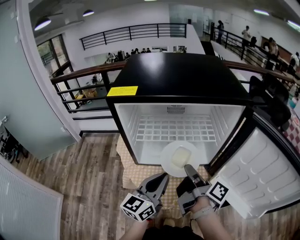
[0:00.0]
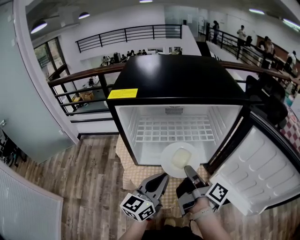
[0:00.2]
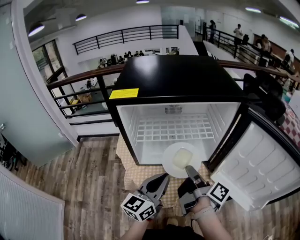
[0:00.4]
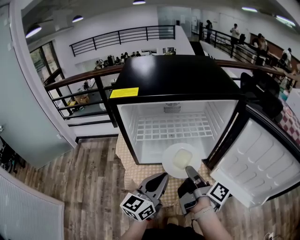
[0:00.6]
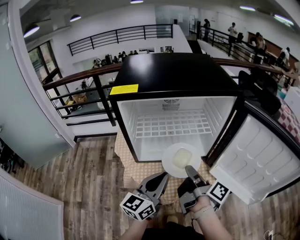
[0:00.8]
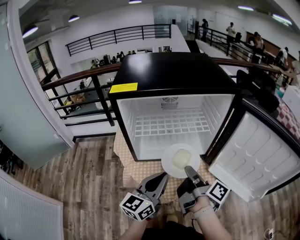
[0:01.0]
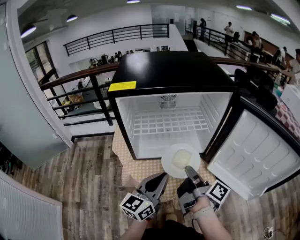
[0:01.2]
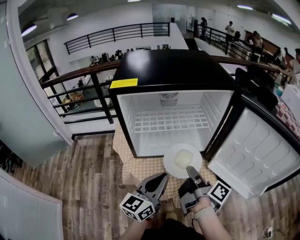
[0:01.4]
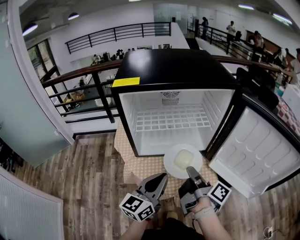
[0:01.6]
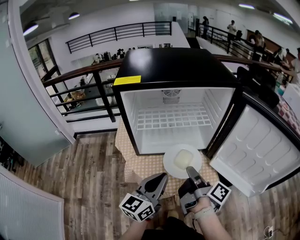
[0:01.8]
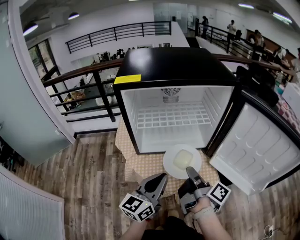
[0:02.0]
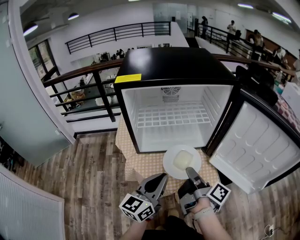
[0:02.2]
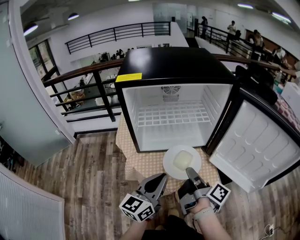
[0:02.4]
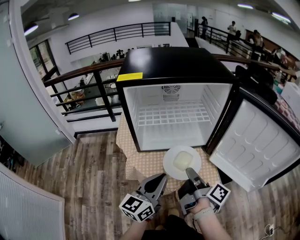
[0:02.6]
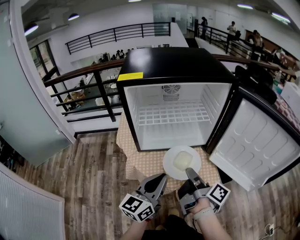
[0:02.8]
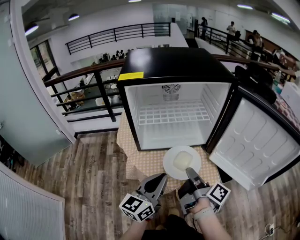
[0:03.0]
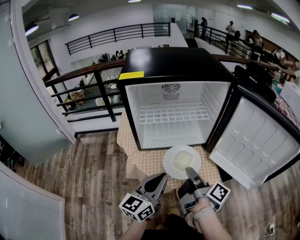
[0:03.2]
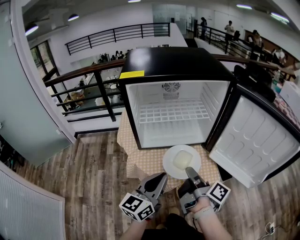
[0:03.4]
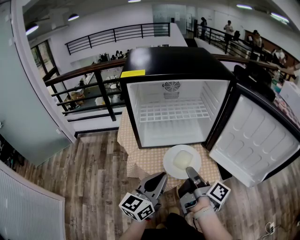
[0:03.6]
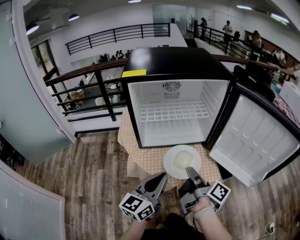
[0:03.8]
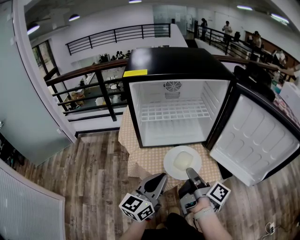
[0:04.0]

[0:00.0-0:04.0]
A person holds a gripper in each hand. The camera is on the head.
0:00.0 to 0:01.4: Both grippers travel together backward, about 5 cm.
0:01.4 to 0:02.6: The grippers stay close to where they were, moving slightly.
0:02.6 to 0:04.0: There are only small adjustments of the grippers.

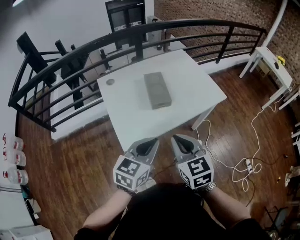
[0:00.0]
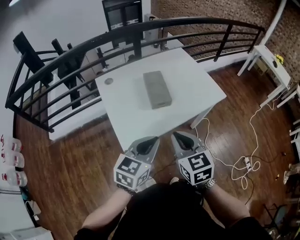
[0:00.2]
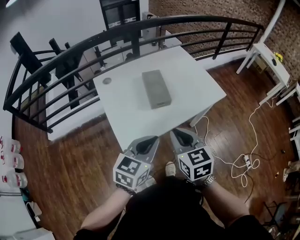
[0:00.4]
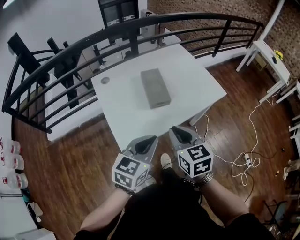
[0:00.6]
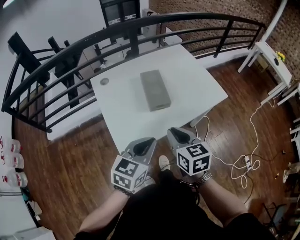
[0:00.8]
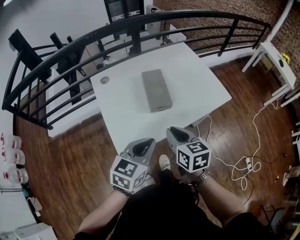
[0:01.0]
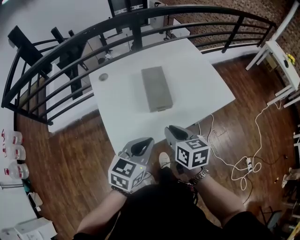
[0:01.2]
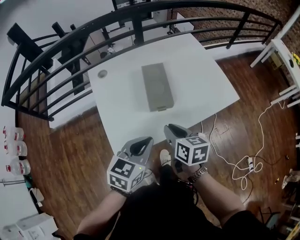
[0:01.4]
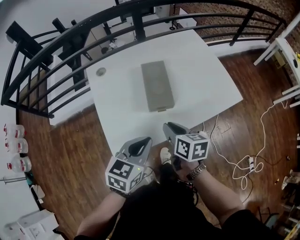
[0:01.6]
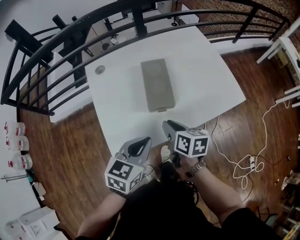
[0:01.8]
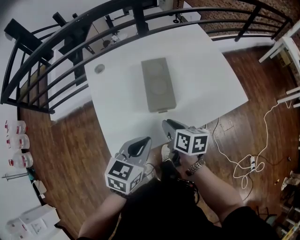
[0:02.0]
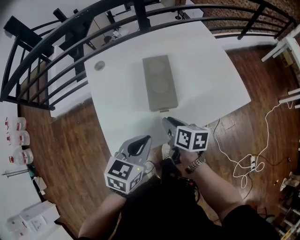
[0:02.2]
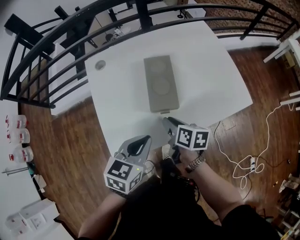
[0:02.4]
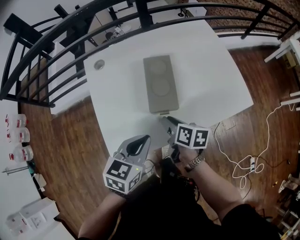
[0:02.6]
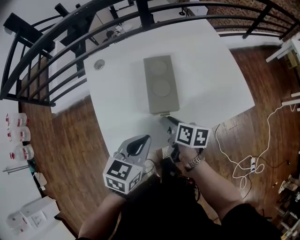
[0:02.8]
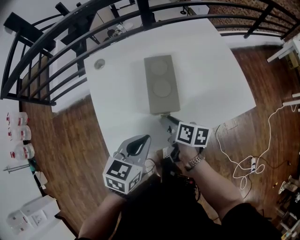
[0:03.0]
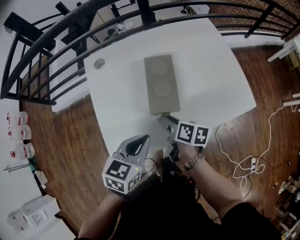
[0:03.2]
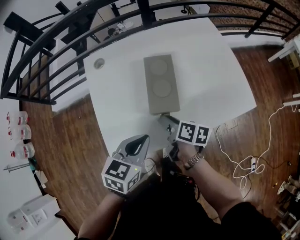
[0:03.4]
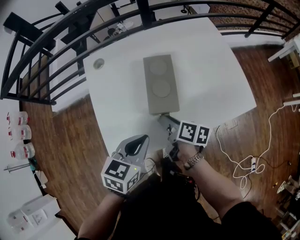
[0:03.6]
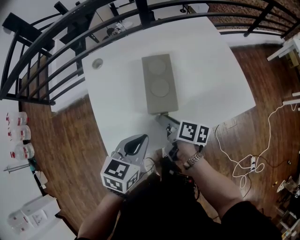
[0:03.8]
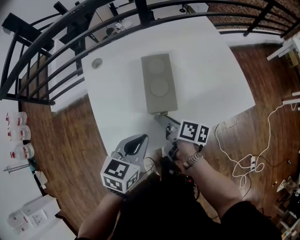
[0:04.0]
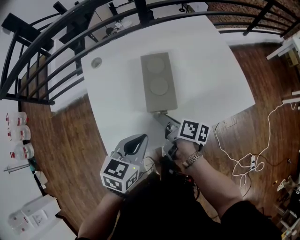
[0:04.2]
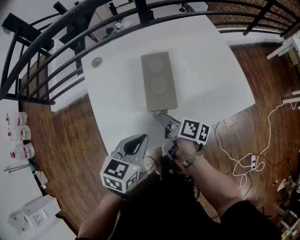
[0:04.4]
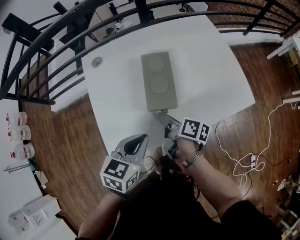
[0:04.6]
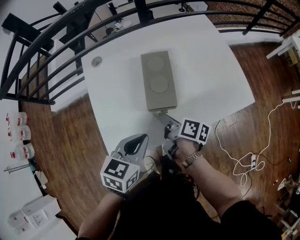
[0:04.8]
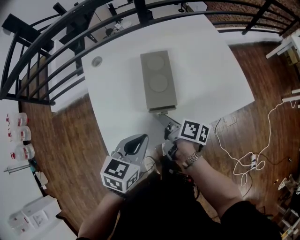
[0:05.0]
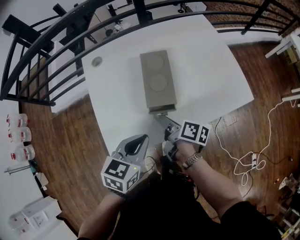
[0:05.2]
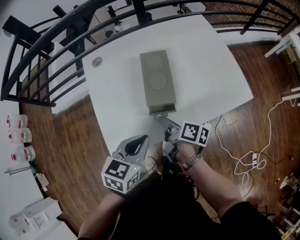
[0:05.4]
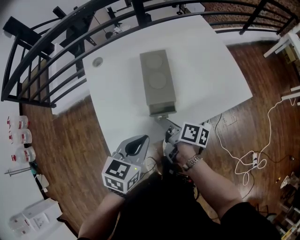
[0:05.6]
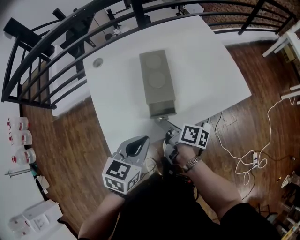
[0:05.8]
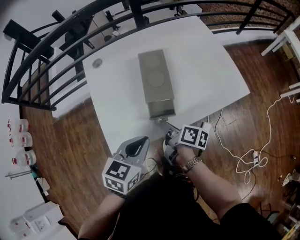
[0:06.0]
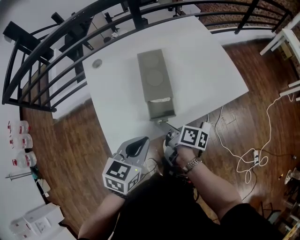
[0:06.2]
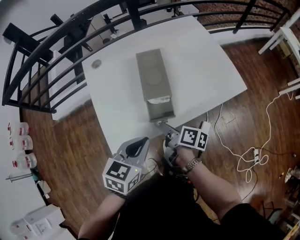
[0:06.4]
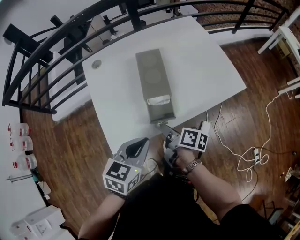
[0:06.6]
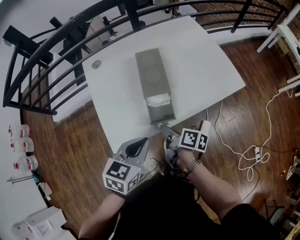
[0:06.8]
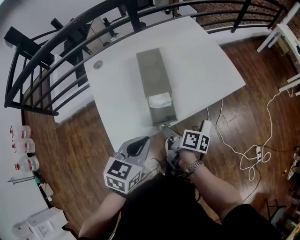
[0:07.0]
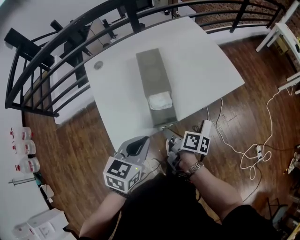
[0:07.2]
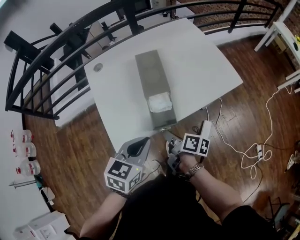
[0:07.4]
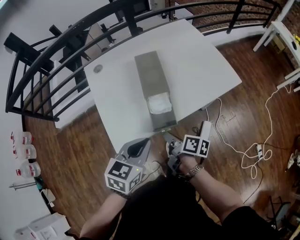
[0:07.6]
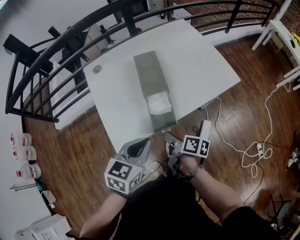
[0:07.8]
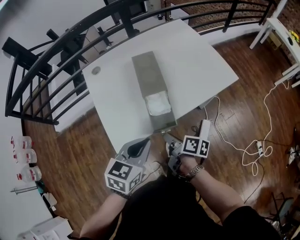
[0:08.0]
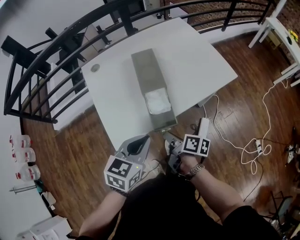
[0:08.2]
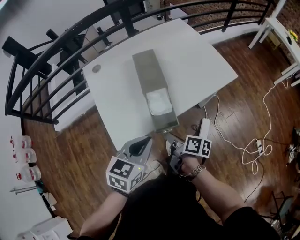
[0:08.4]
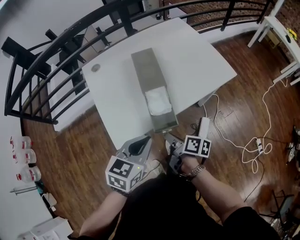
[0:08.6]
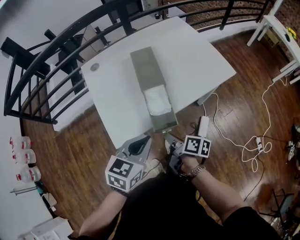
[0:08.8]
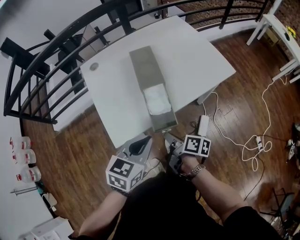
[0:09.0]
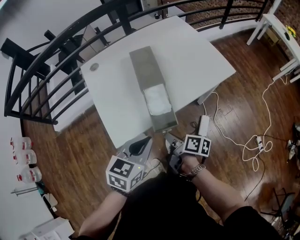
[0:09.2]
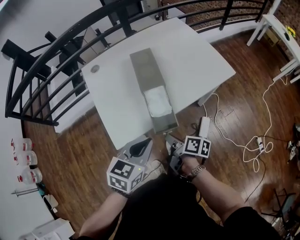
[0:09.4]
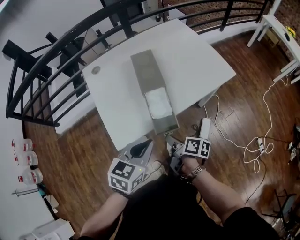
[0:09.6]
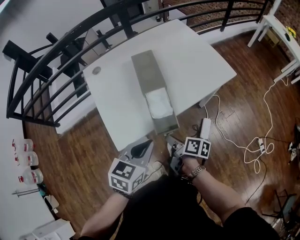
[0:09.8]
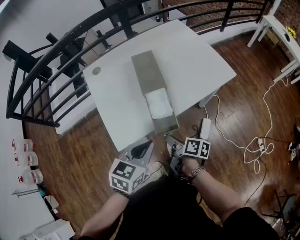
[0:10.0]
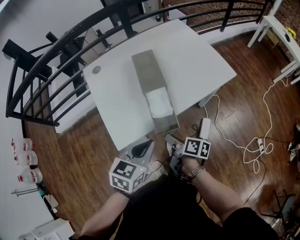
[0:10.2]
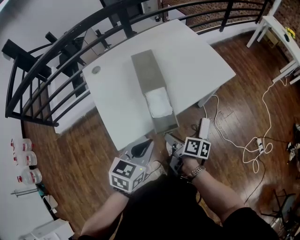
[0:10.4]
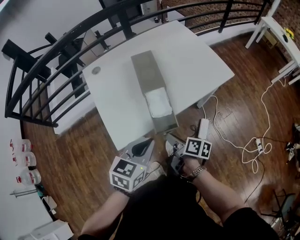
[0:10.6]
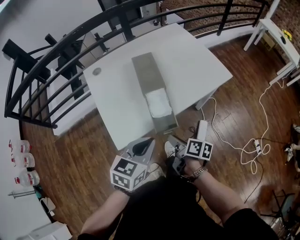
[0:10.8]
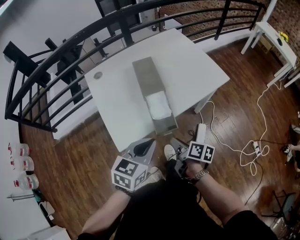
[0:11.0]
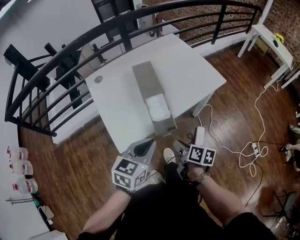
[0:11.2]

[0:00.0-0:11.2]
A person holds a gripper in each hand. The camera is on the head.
0:00.0 to 0:01.6: The right gripper shifts approximately 20 cm forward and downward, and turns by approximately 40 degrees, while the left gripper travels forward and downward by roughly 15 cm.
0:01.6 to 0:03.2: The left gripper goes some 5 cm forward. Meanwhile the right gripper heads downward and forward, covering some 10 cm, and rotates approximately 20 degrees.
0:03.2 to 0:04.8: The grippers move only a little.
0:04.8 to 0:06.4: Both grippers move backward, about 5 cm.
0:06.4 to 0:08.0: The right gripper shifts approximately 10 cm backward.
0:08.0 to 0:09.6: There are only small adjustments of the grippers.
0:09.6 to 0:11.2: The right gripper moves about 5 cm.

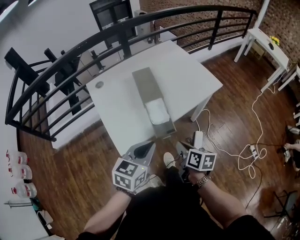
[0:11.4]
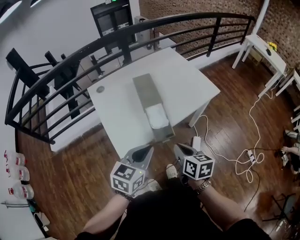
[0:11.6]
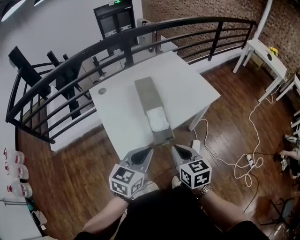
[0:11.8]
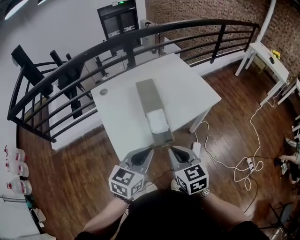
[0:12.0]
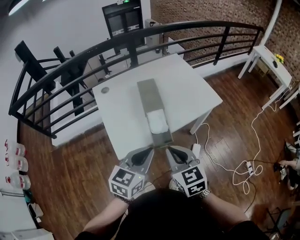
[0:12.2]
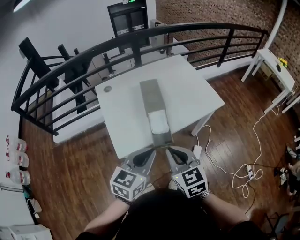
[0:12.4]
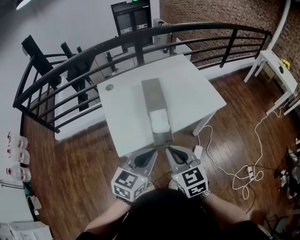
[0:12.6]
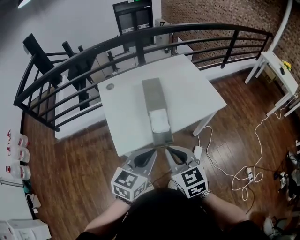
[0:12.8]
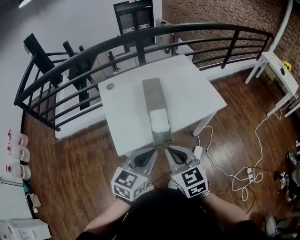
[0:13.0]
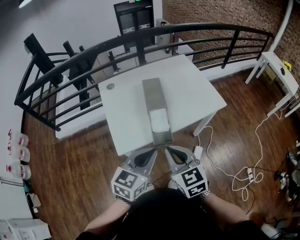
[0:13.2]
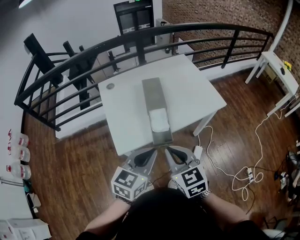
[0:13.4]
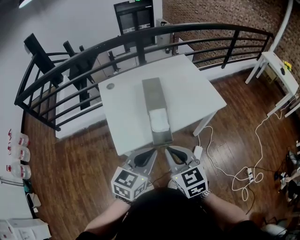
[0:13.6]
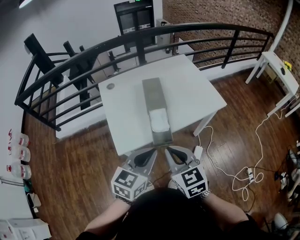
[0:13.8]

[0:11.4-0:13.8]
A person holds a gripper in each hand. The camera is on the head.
0:11.4 to 0:12.6: The left gripper moves upward, roughly 5 cm. The right gripper is displaced upward by about 15 cm, and rotates around the line of its fingers by about 50 degrees, counterclockwise from behind.
0:12.6 to 0:13.8: Neither gripper changes place.

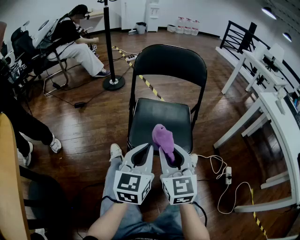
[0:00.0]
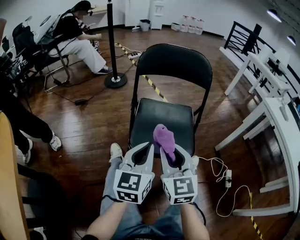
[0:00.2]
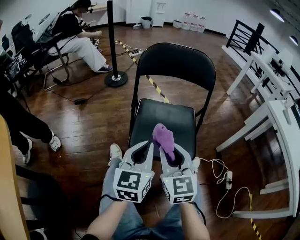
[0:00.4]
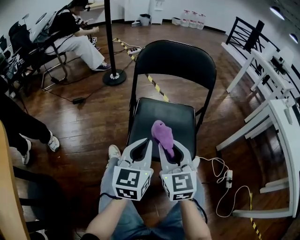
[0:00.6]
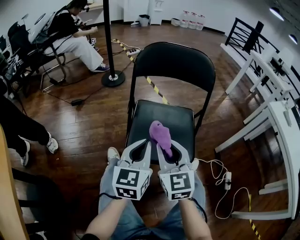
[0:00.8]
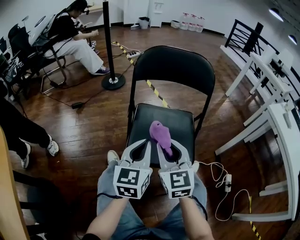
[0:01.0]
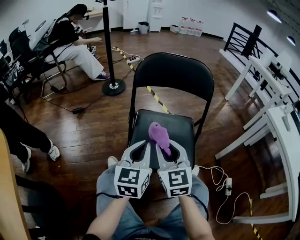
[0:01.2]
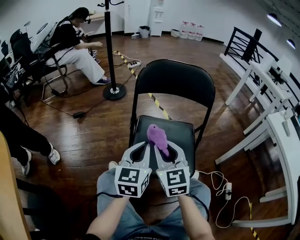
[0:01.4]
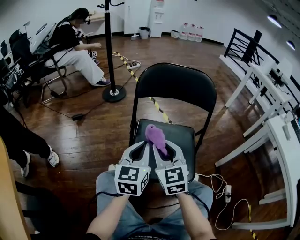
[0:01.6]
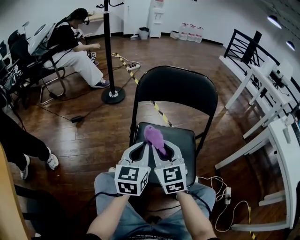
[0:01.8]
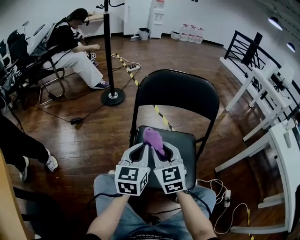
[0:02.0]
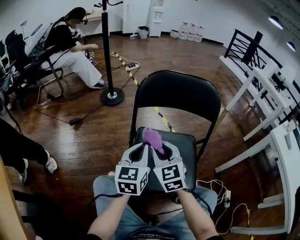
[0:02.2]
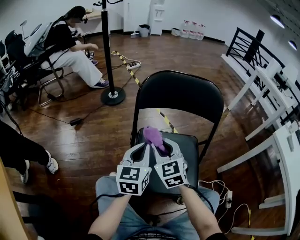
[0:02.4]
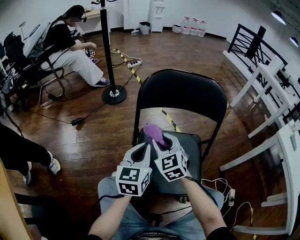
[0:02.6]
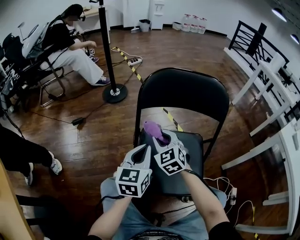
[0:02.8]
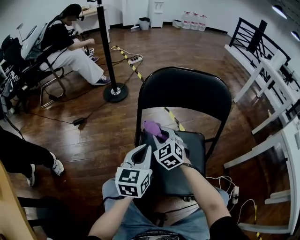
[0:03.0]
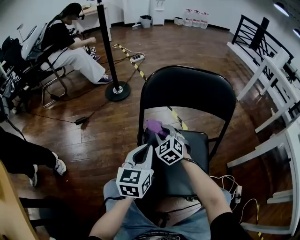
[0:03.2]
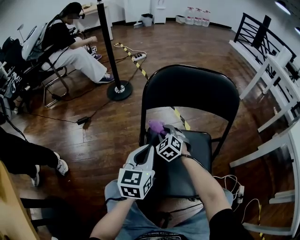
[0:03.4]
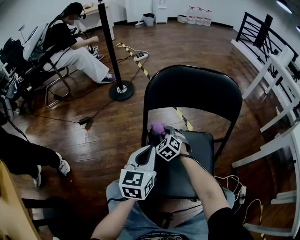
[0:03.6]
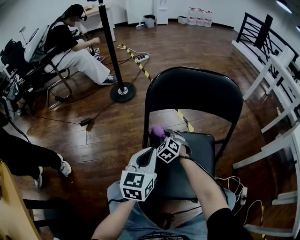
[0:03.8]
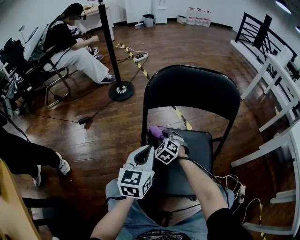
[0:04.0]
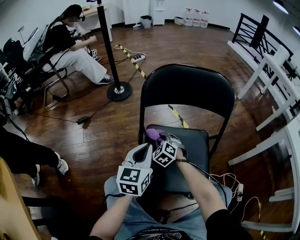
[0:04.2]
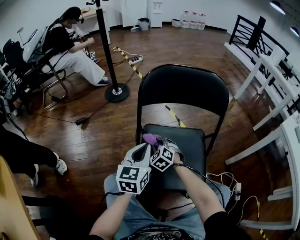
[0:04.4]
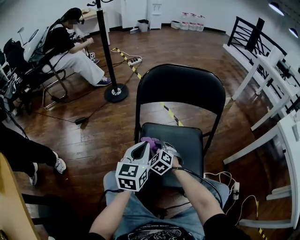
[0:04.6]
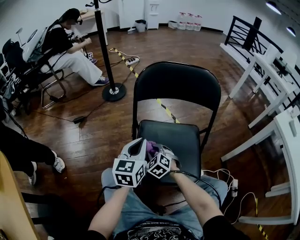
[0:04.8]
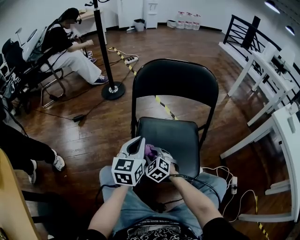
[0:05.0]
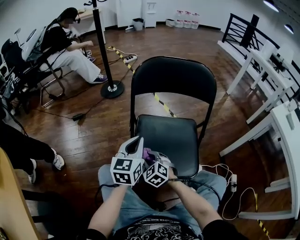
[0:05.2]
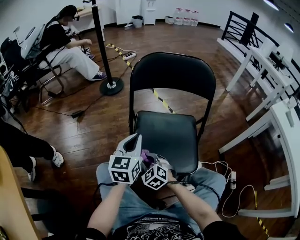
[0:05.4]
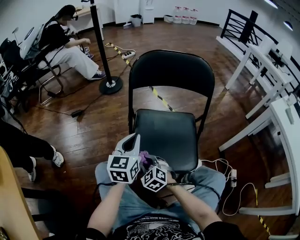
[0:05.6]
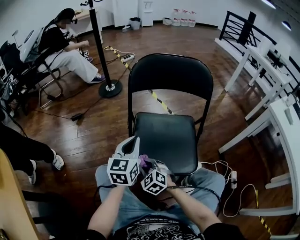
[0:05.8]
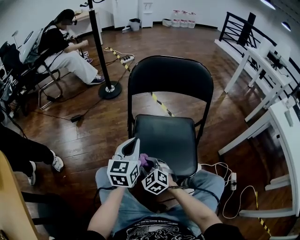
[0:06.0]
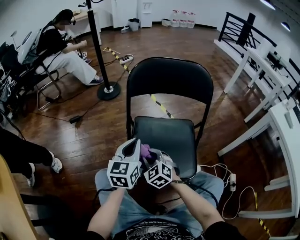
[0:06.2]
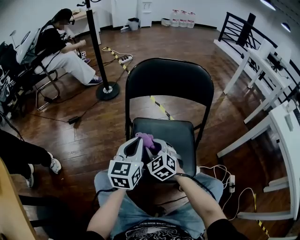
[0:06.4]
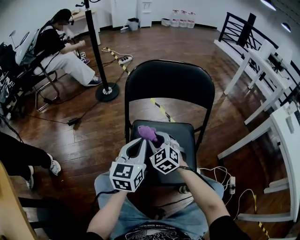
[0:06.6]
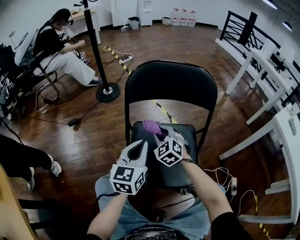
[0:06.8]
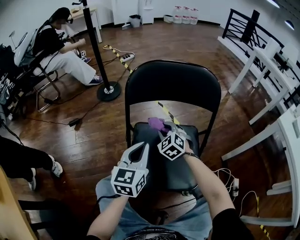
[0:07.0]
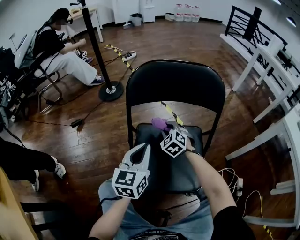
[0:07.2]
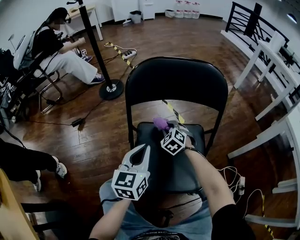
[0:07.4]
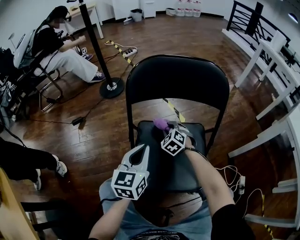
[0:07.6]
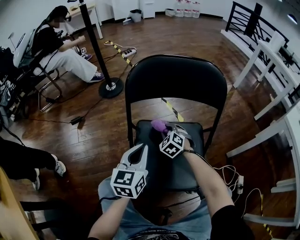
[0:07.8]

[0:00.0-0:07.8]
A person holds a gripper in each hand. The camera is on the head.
0:00.0 to 0:01.6: Both grippers travel together forward, some 20 cm.
0:01.6 to 0:03.2: The left gripper moves forward, approximately 10 cm; the right gripper travels forward and downward by approximately 25 cm, and changes its angle by approximately 30 degrees.
0:03.2 to 0:04.6: The right gripper is displaced backward and downward by approximately 10 cm.
0:04.6 to 0:06.2: The right gripper travels backward and upward by roughly 10 cm.
0:06.2 to 0:07.8: The left gripper changes place by approximately 5 cm. The right gripper shifts about 20 cm forward and to the right.
